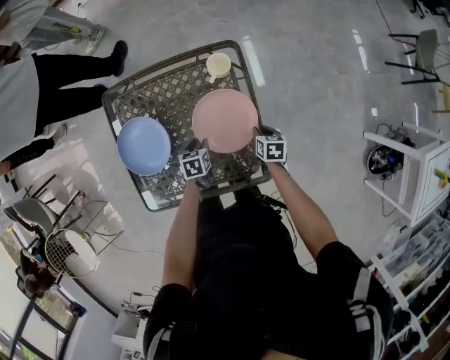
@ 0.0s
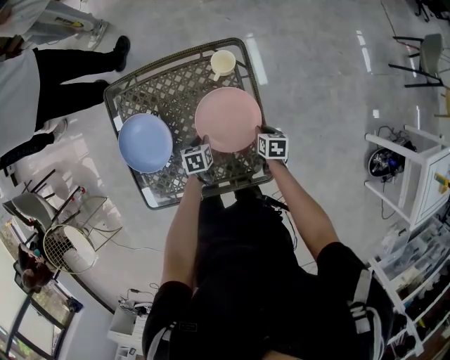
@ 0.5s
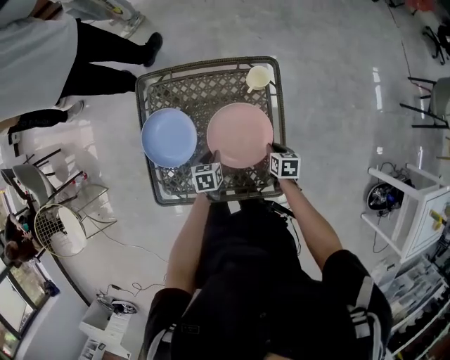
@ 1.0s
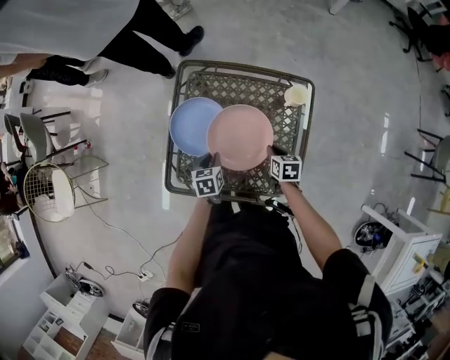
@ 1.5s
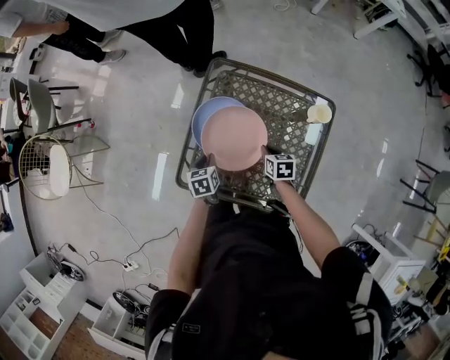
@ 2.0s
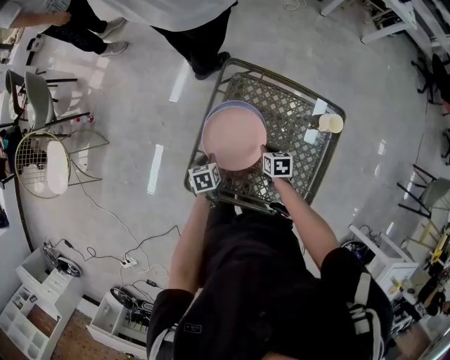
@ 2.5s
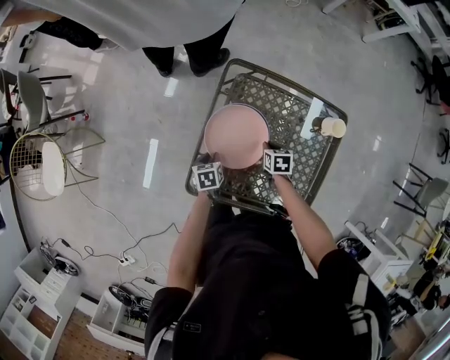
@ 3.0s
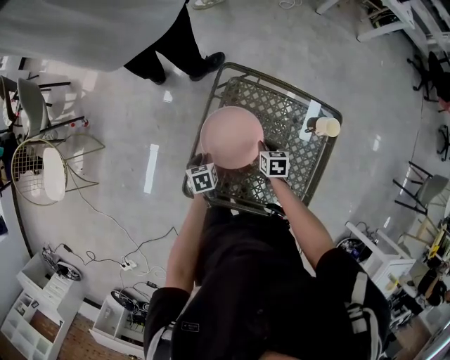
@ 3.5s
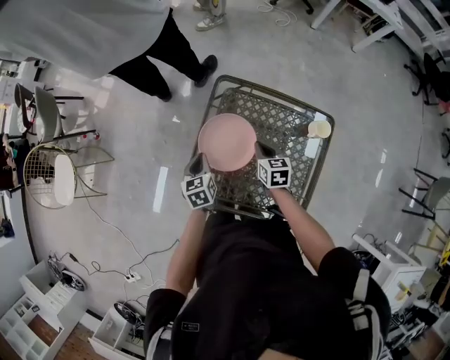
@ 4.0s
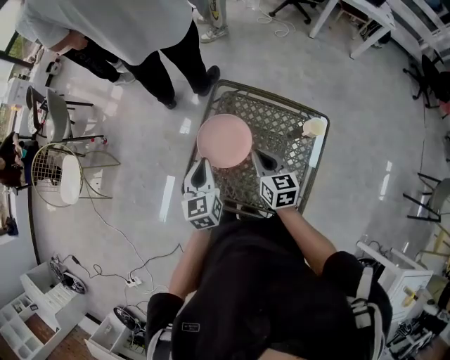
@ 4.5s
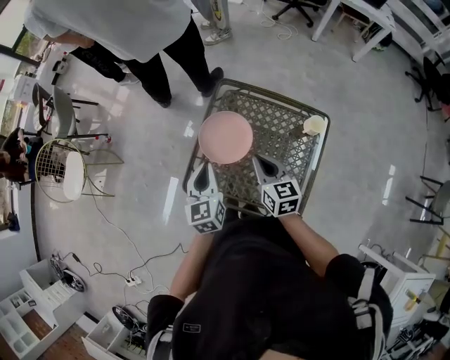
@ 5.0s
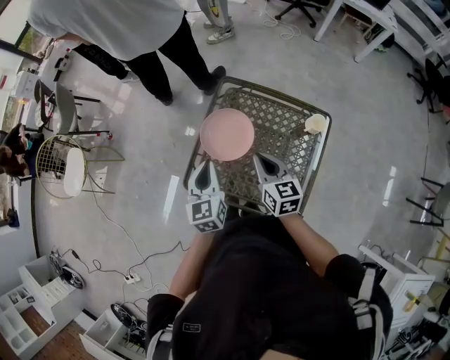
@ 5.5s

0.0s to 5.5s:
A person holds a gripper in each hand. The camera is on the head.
0.0s to 2.0s: The left gripper changes place by some 25 cm, turns by about 40 degrees, and closes its fingers. The right gripper ends up about 30 cm from where it was, and swivels some 30 degrees.
2.0s to 3.5s: The right gripper goes some 10 cm forward, while the left gripper travels to the left and forward by approximately 10 cm.
3.5s to 5.5s: Both grippers move upward, about 30 cm. The right gripper tips its fingers upward by some 40 degrees. Meanwhile the left gripper points its fingers roughly 40 degrees further upward, and closes up.

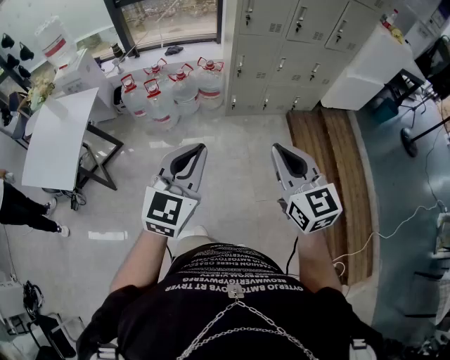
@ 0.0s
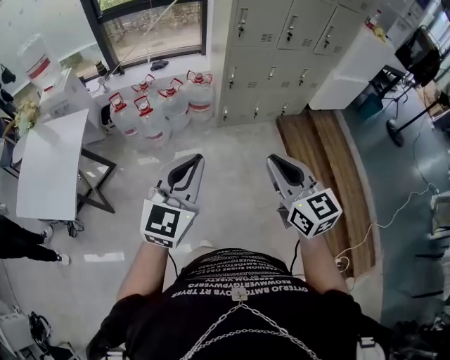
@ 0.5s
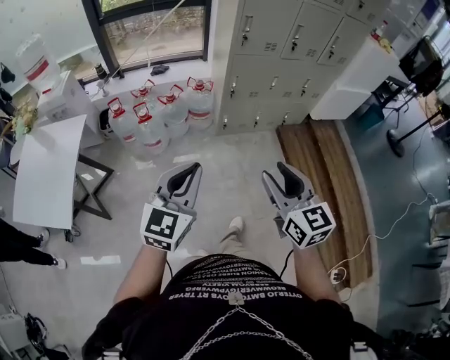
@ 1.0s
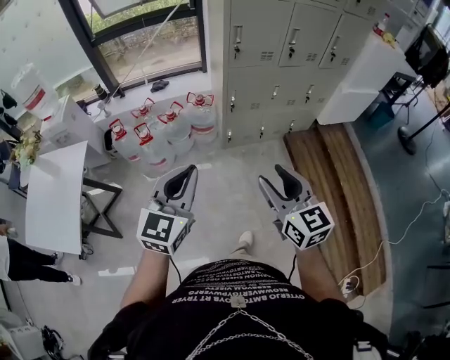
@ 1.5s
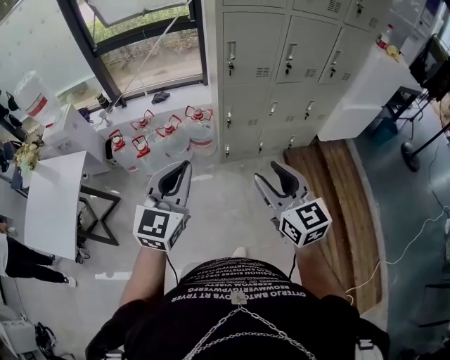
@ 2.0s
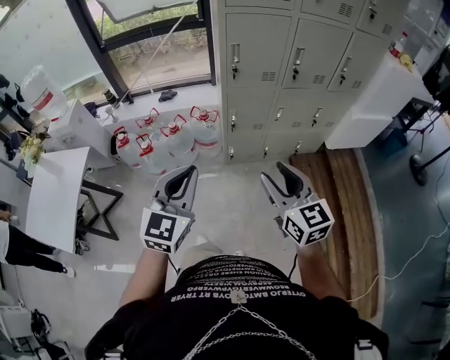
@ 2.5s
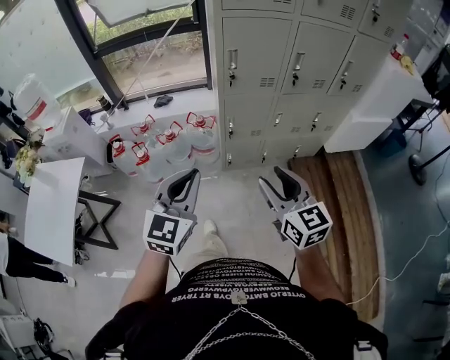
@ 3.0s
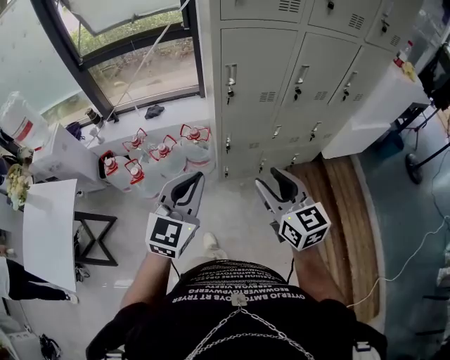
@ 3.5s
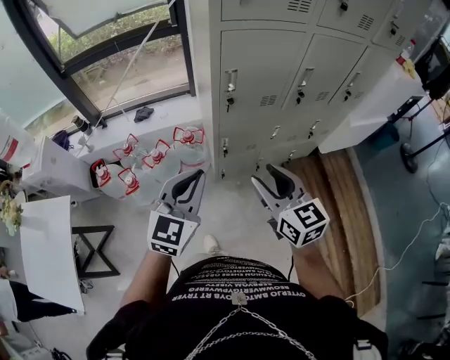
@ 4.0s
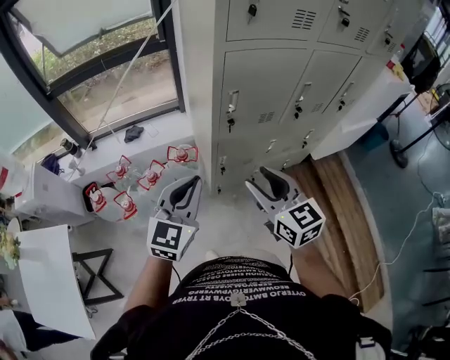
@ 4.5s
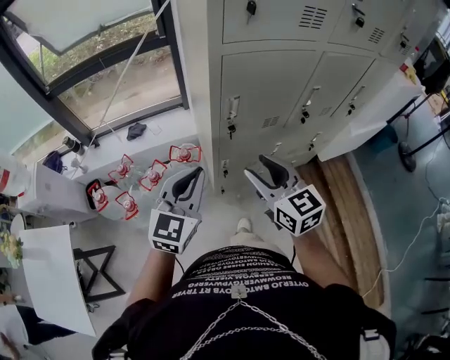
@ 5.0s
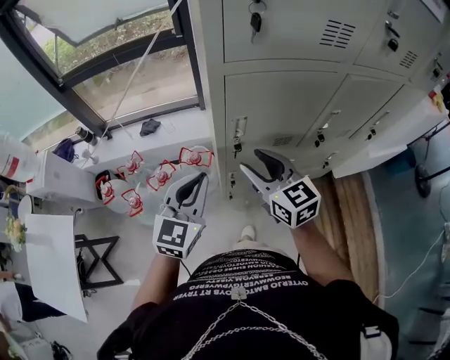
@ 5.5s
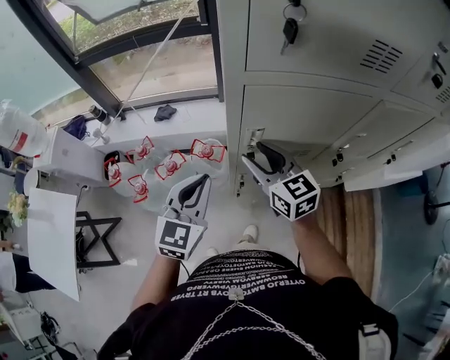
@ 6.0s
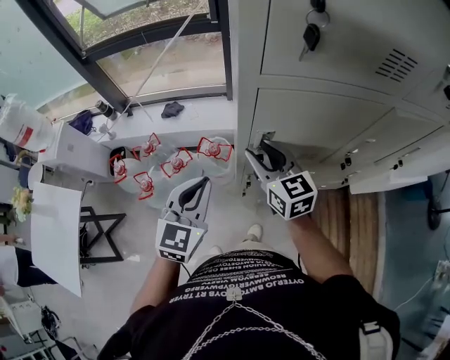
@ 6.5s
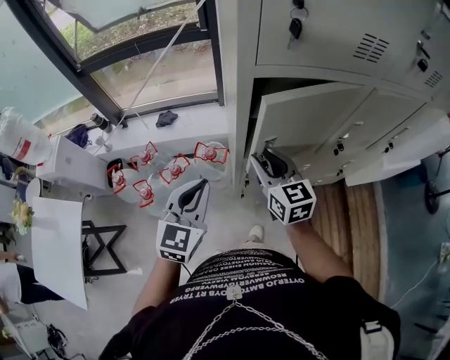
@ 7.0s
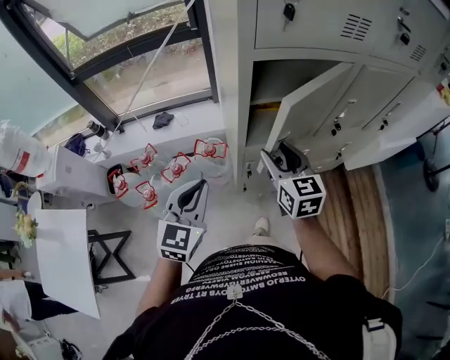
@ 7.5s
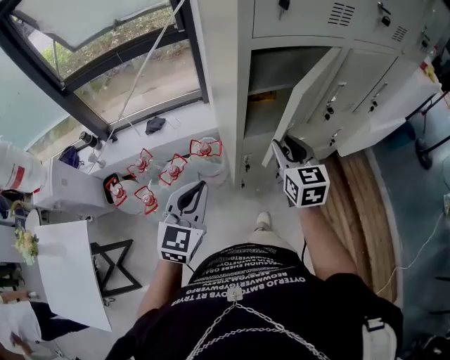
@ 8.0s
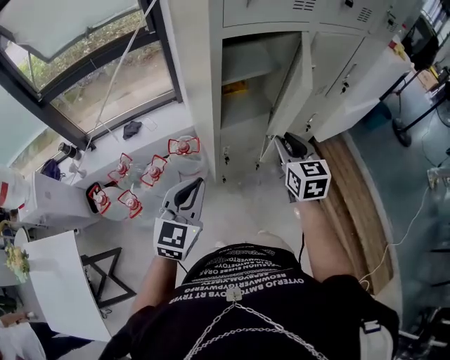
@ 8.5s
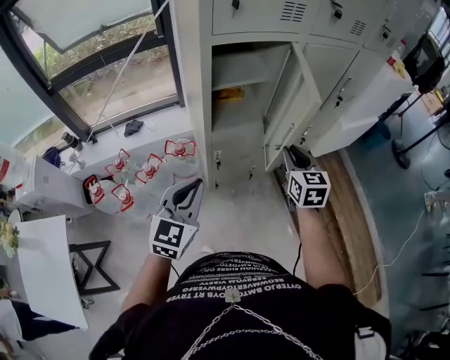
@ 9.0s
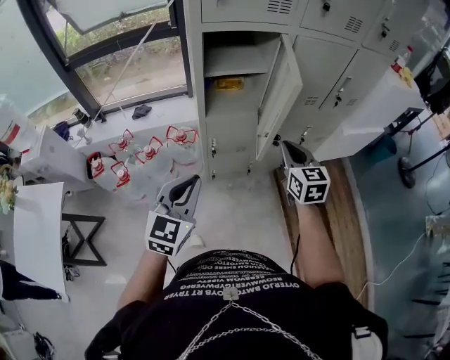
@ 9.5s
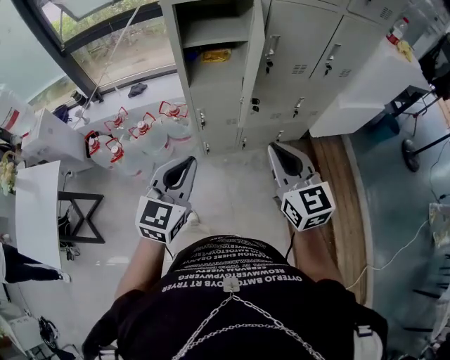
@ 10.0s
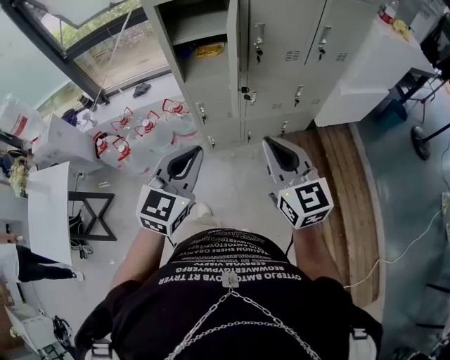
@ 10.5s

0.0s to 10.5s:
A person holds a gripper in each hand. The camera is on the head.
0.0s to 2.0s: The grippers both shift forward by some 25 cm. The right gripper opens up.
2.0s to 4.0s: Both grippers travel together forward, roughly 30 cm.
4.0s to 6.5s: Both grippers move forward, some 30 cm.
6.5s to 8.5s: The left gripper shifts by some 15 cm, and turns by roughly 20 degrees. The right gripper moves some 20 cm, and changes its angle by approximately 40 degrees.
8.5s to 10.5s: The right gripper heads backward and to the right, covering about 30 cm, changes its angle by roughly 30 degrees, and closes up, while the left gripper moves to the right and backward, some 35 cm.

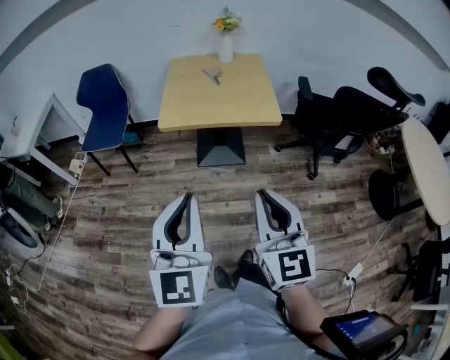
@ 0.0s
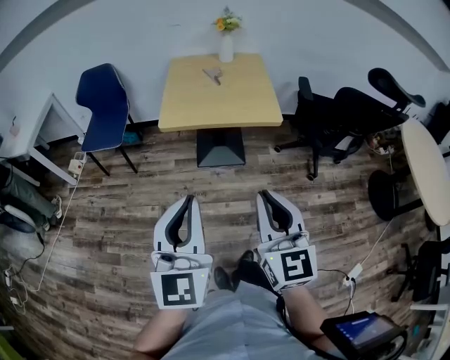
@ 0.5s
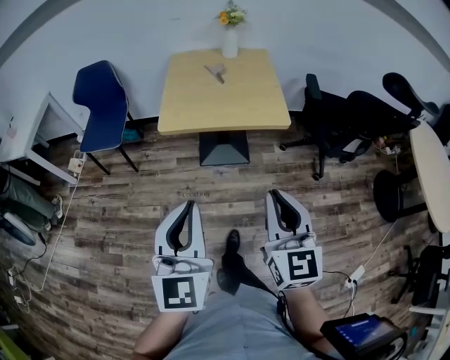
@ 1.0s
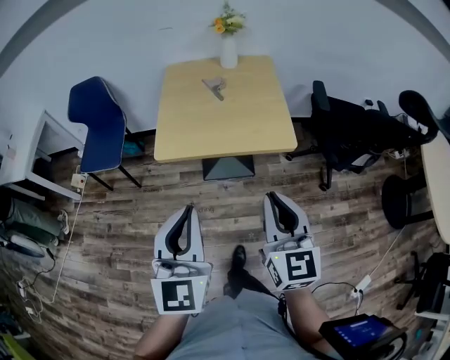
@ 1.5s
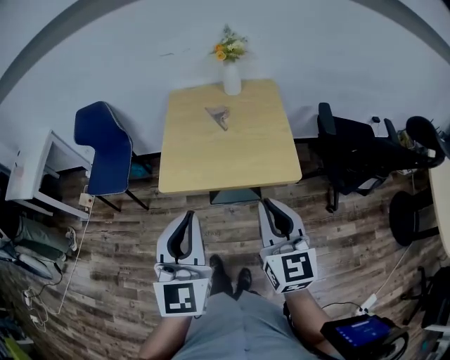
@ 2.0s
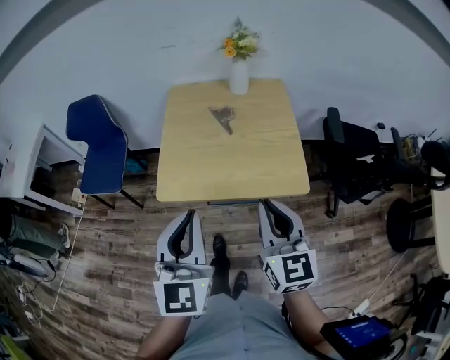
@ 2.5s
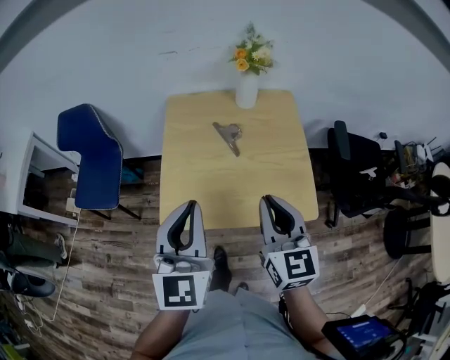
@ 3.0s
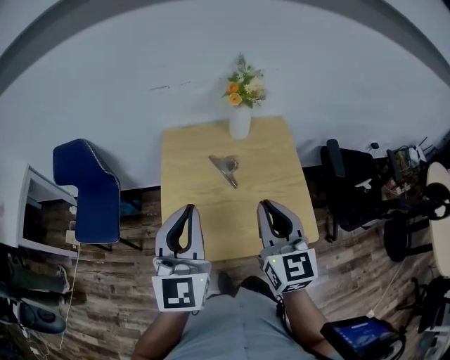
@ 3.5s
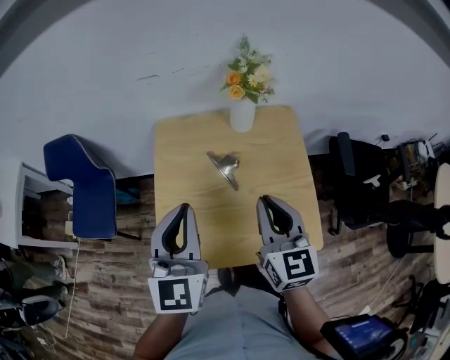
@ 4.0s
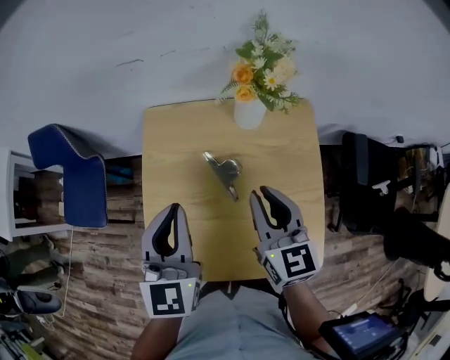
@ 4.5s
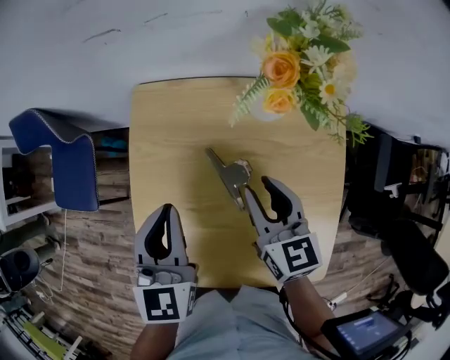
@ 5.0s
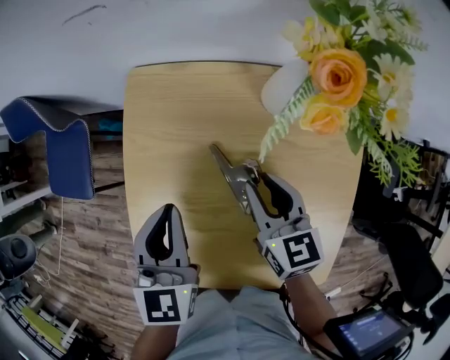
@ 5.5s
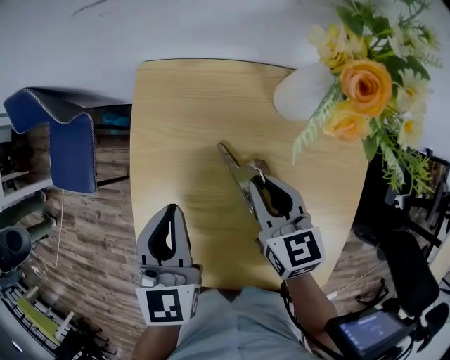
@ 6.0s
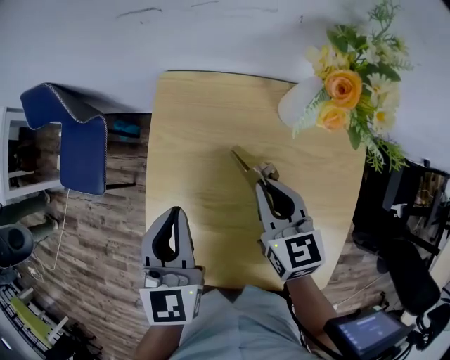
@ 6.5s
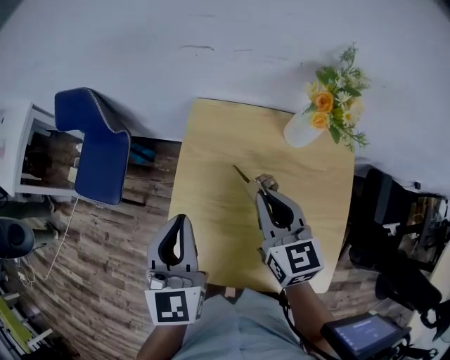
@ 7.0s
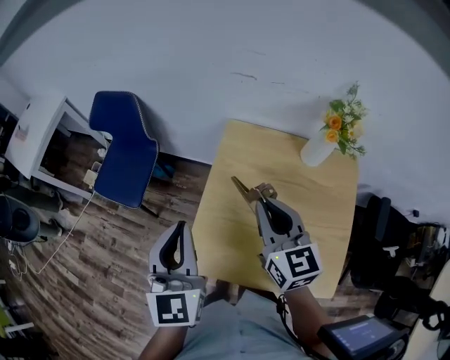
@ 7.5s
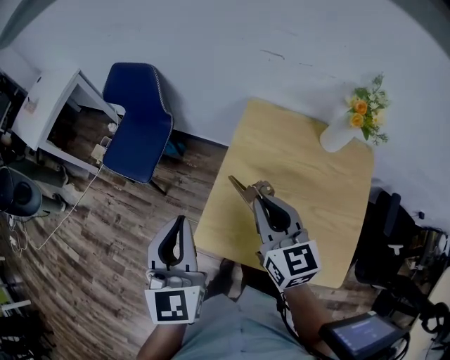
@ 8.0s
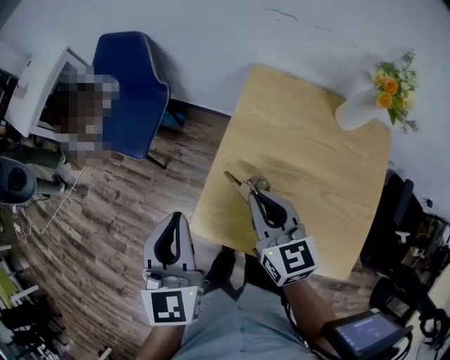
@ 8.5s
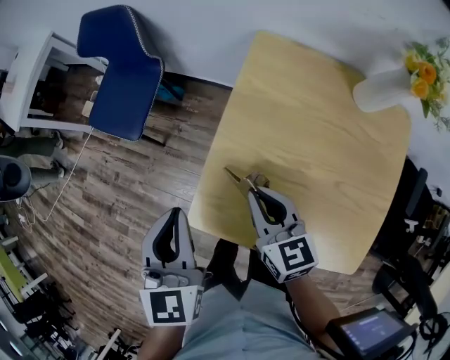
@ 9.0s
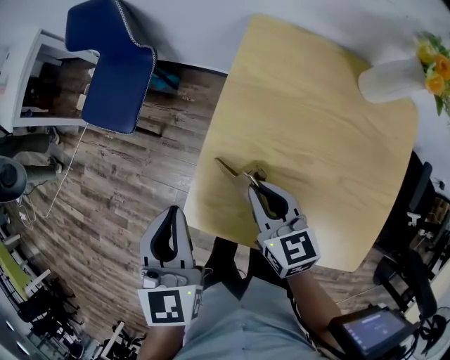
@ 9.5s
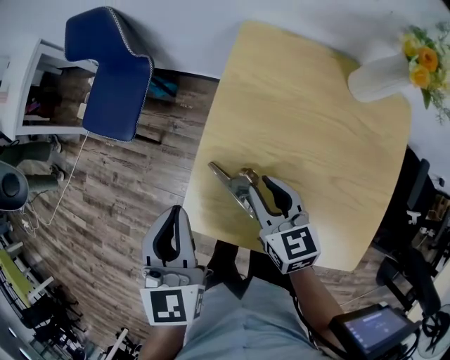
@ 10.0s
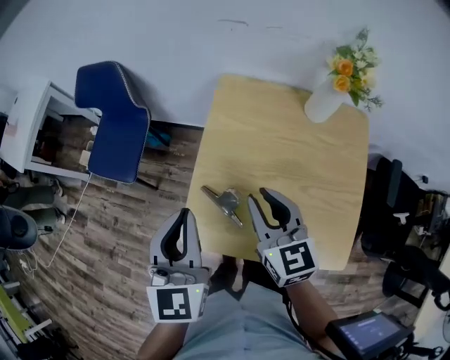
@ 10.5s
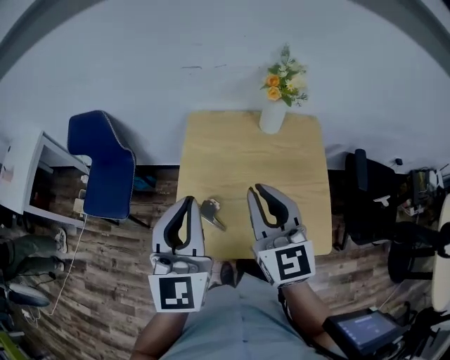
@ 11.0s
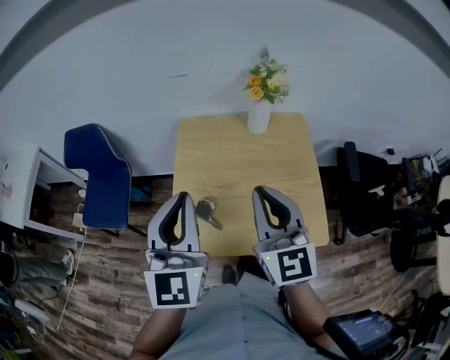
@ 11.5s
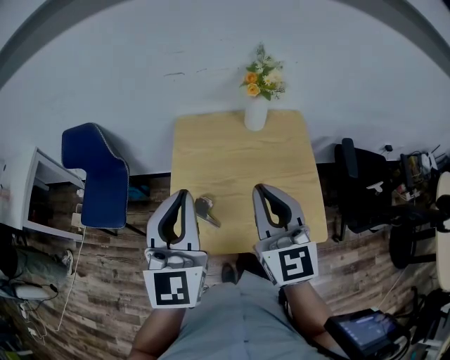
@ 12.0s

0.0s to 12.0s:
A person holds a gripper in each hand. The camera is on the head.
0.0s to 2.0s: The two grippers go roughly 30 cm forward.
2.0s to 4.0s: Both grippers travel together forward, approximately 40 cm.
4.0s to 6.0s: Both grippers move downward and forward, about 30 cm. The right gripper changes its angle by about 30 degrees. Meanwhile the left gripper changes its angle by some 30 degrees.
6.0s to 8.0s: The grippers both shift to the left, upward and backward by approximately 35 cm. The right gripper rotates about 20 degrees, while the left gripper turns by some 20 degrees.
8.0s to 10.0s: The grippers both shift downward by approximately 15 cm.
10.0s to 12.0s: Both grippers move upward, about 25 cm. The left gripper tilts its fingers some 30 degrees upward. The right gripper turns by approximately 50 degrees.
